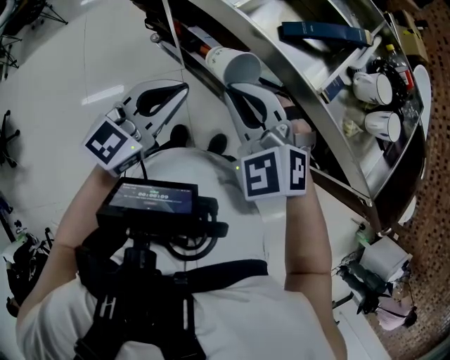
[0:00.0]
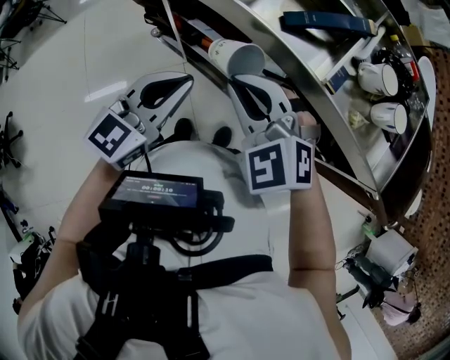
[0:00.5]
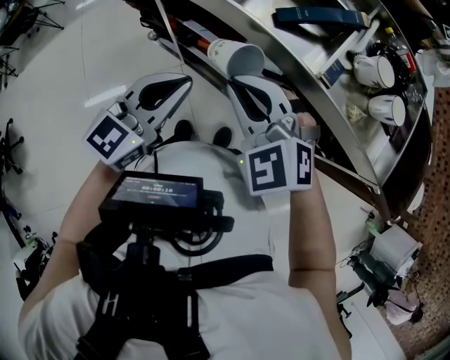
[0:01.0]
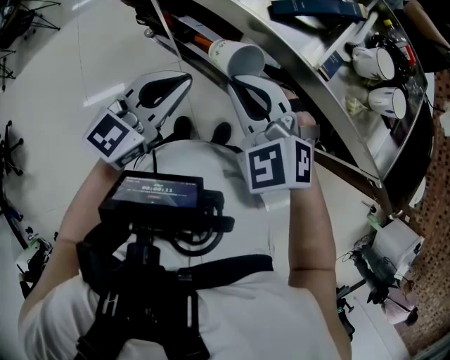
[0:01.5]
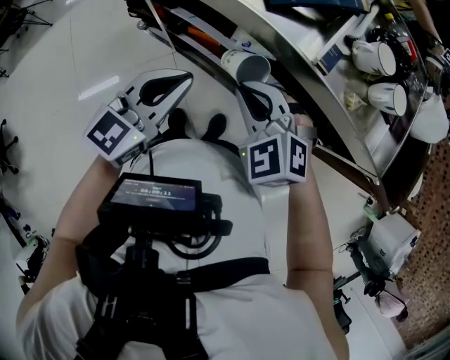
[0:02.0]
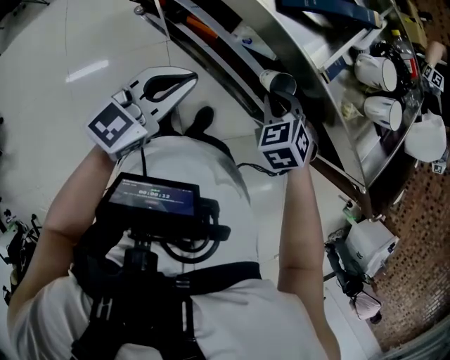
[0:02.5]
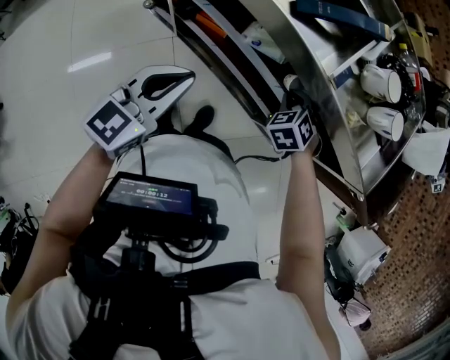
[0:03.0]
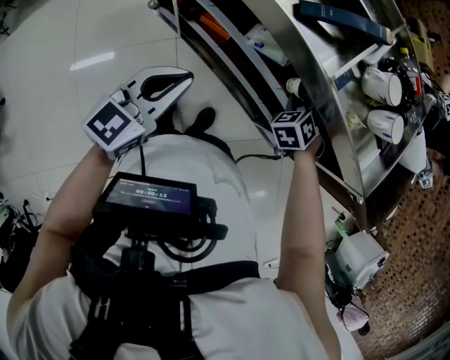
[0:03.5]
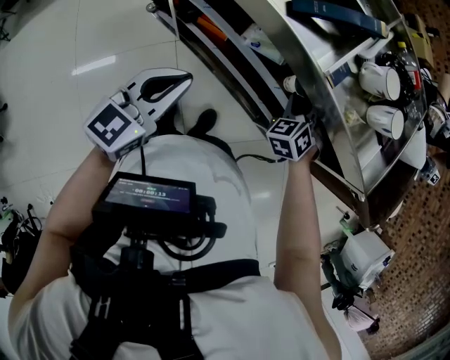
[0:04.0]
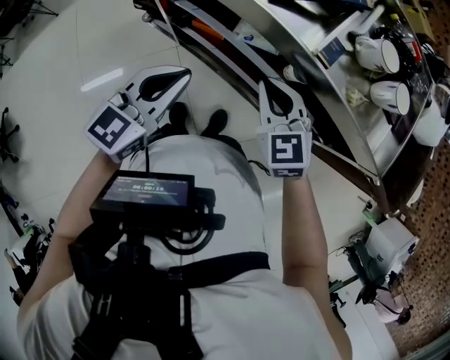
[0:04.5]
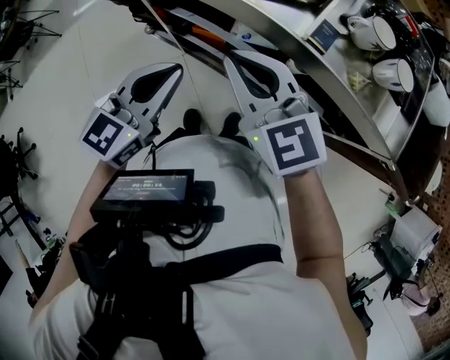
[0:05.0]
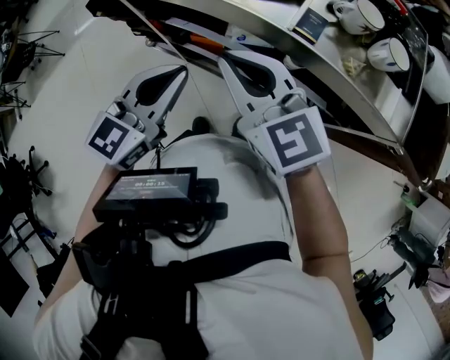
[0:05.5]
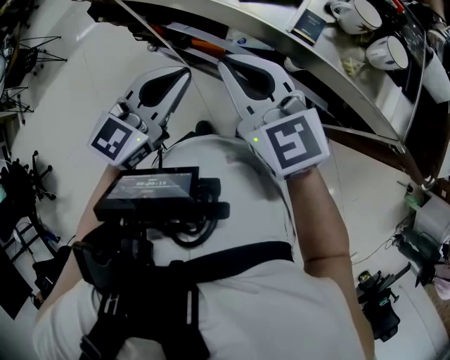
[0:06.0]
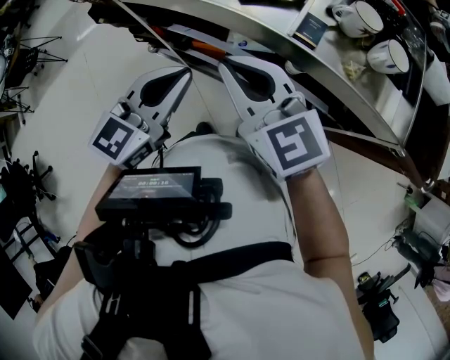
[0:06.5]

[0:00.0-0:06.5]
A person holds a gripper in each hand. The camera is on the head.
0.0 to 2.0 s: The right gripper shifts approximately 10 cm downward and to the right.
2.0 to 4.5 s: The right gripper goes to the right and returns, some 15 cm each way, and changes its angle by some 30 degrees.
4.5 to 6.5 s: The right gripper travels upward and to the left by roughly 15 cm, and rotates roughly 20 degrees. Meanwhile the left gripper shifts about 5 cm upward.

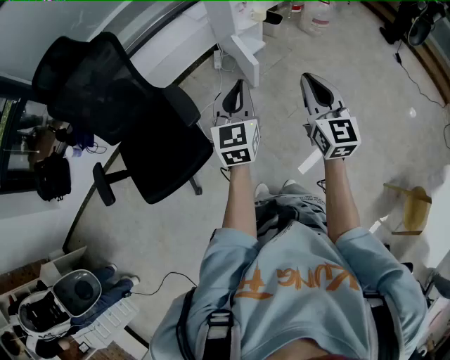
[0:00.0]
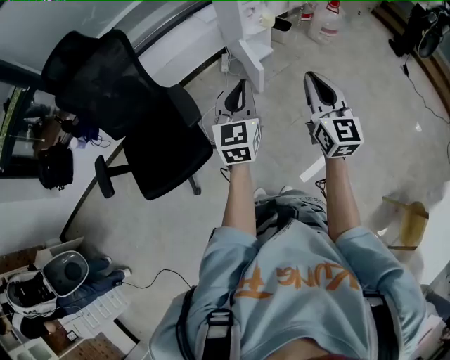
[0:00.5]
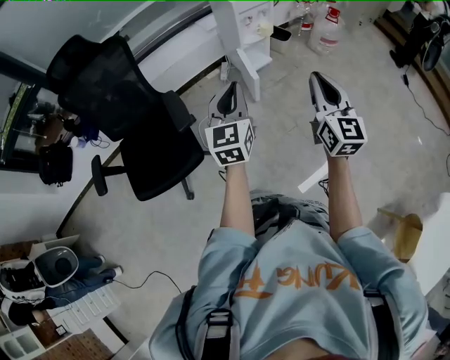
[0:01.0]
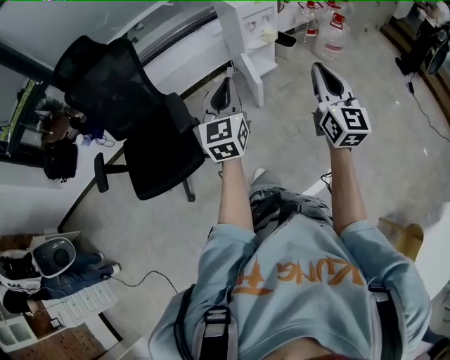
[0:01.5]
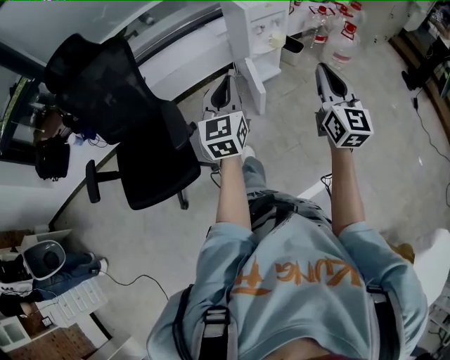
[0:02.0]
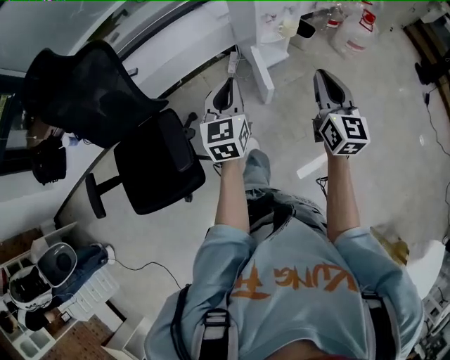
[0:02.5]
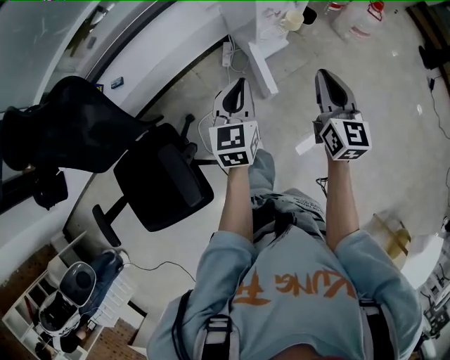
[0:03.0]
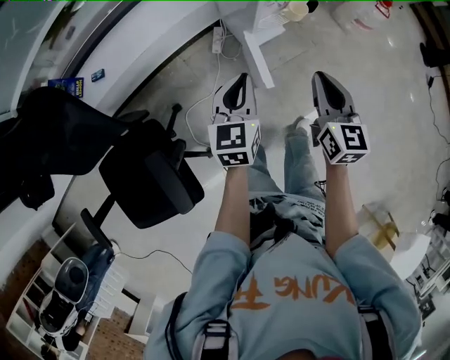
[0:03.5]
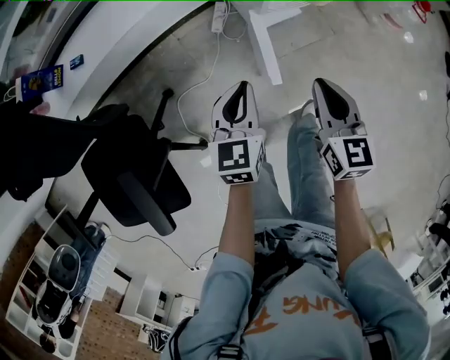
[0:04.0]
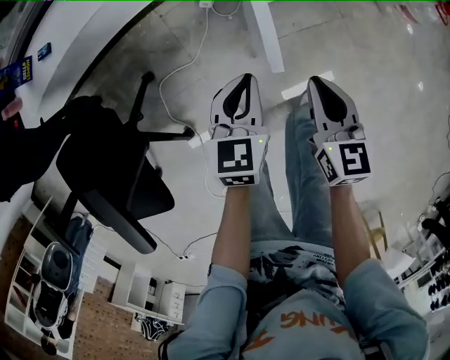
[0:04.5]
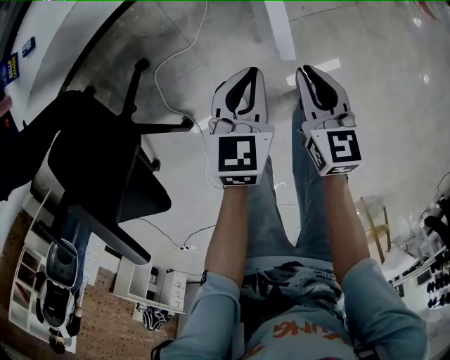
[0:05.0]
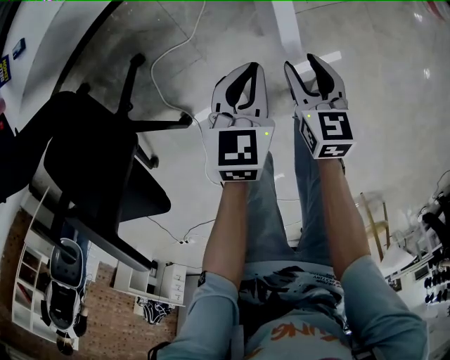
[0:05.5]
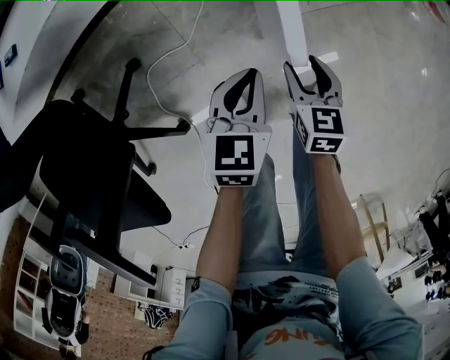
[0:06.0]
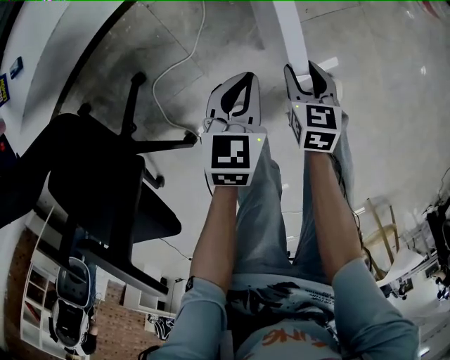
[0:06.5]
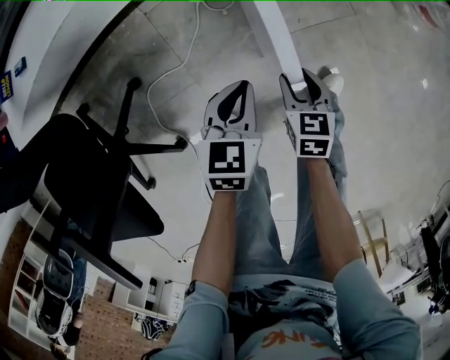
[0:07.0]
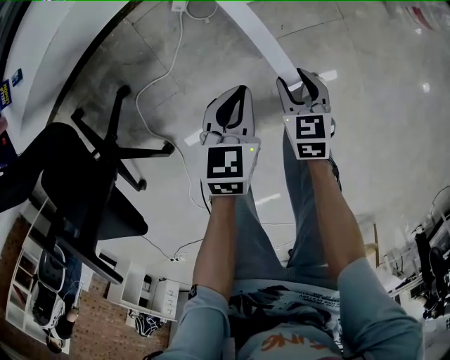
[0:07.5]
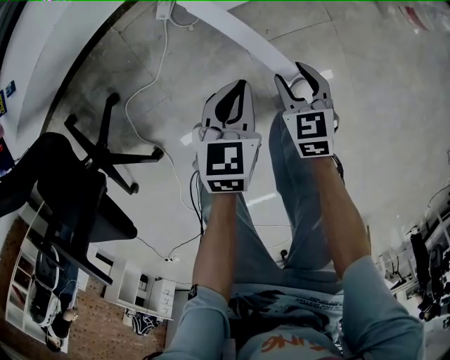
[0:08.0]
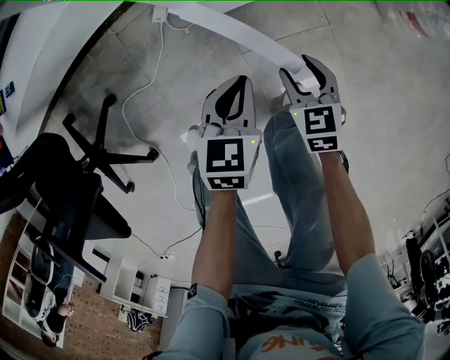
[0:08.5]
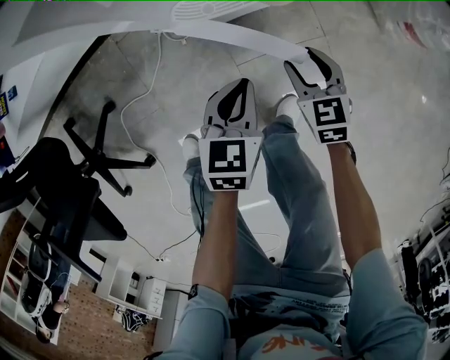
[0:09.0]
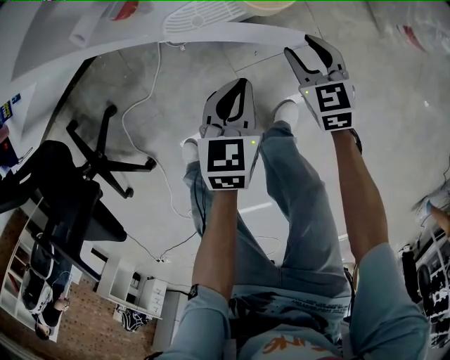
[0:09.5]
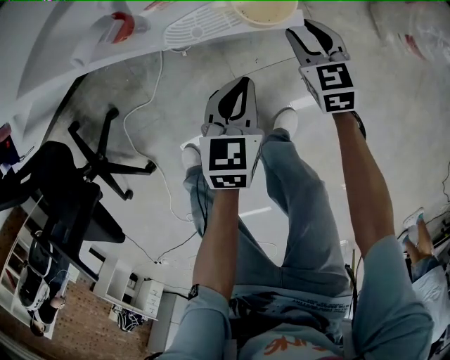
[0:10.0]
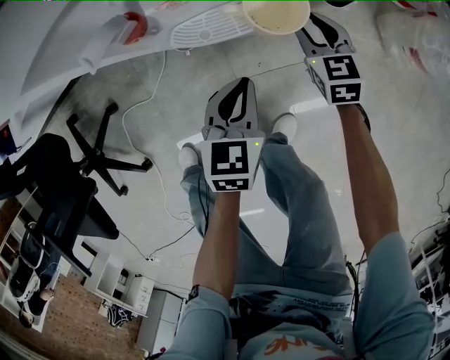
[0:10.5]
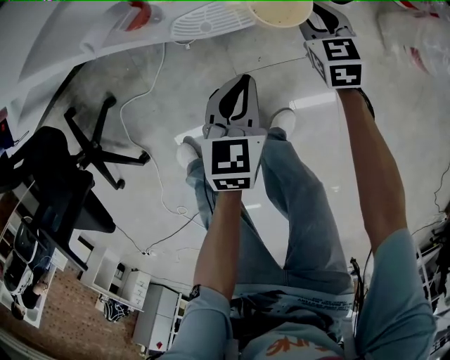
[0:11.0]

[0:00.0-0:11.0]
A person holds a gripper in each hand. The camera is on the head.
0.0 to 2.0 s: The right gripper is displaced forward and to the right by about 20 cm. The left gripper shifts approximately 10 cm forward.
2.0 to 3.5 s: The grippers both shift forward and downward by about 40 cm. The right gripper swivels some 30 degrees. The left gripper changes its angle by approximately 20 degrees.
3.5 to 5.5 s: The two grippers go about 40 cm downward. The right gripper turns by some 30 degrees, and opens its fingers.
5.5 to 7.5 s: The left gripper is displaced to the right and forward by some 10 cm, while the right gripper moves to the right, downward and forward, approximately 15 cm.
7.5 to 9.0 s: The right gripper moves forward and to the right, approximately 20 cm. The left gripper moves to the right and forward, approximately 15 cm.
9.0 to 11.0 s: The left gripper shifts by roughly 5 cm. The right gripper goes roughly 15 cm forward.

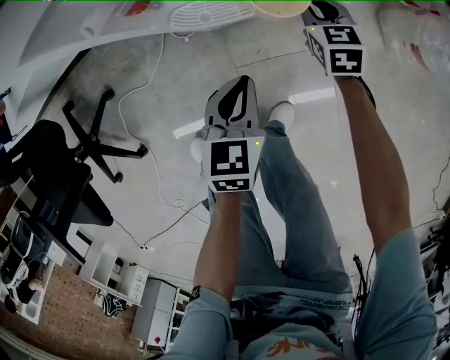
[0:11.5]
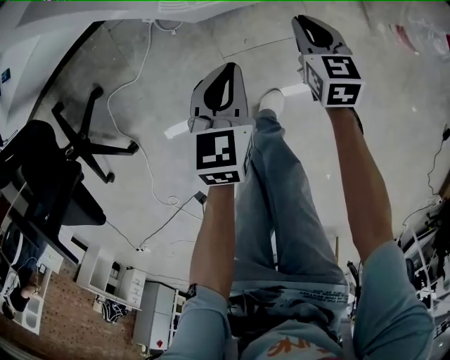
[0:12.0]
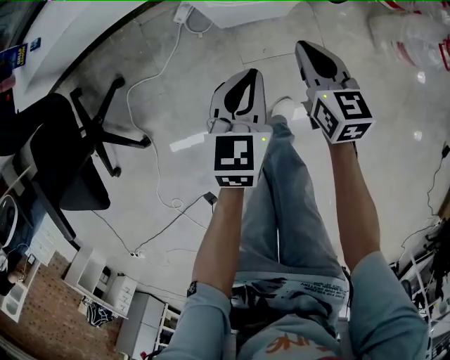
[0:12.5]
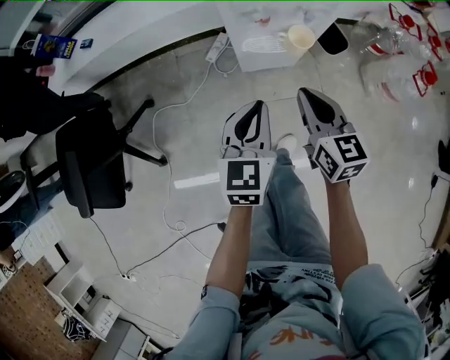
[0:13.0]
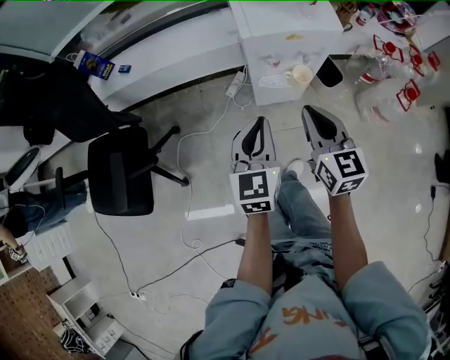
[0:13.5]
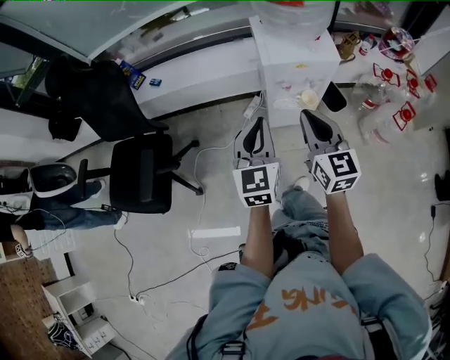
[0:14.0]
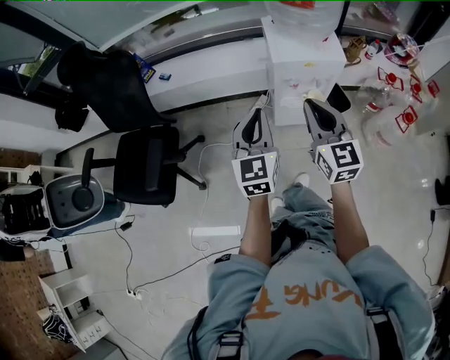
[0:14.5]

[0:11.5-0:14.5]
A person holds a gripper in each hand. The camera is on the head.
11.5 to 13.0 s: The left gripper moves upward, about 25 cm; the right gripper heads upward, backward and to the left, covering roughly 40 cm, and changes its angle by about 20 degrees.
13.0 to 14.5 s: Both grippers travel together upward, roughly 30 cm. The right gripper changes its angle by some 20 degrees; the left gripper rotates about 20 degrees.

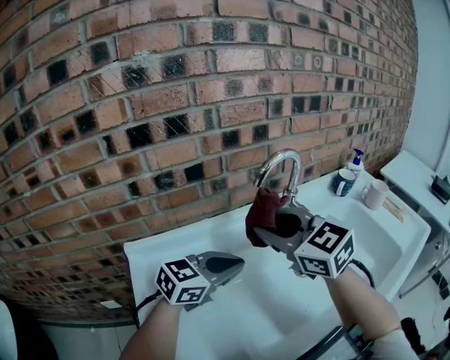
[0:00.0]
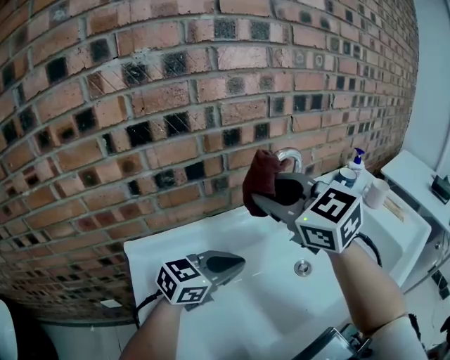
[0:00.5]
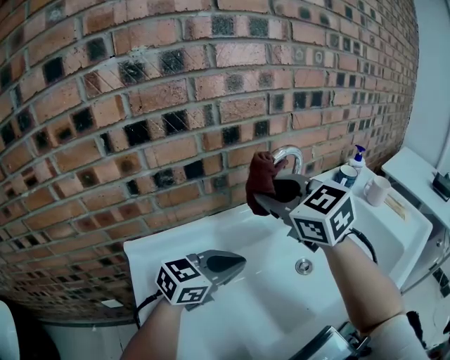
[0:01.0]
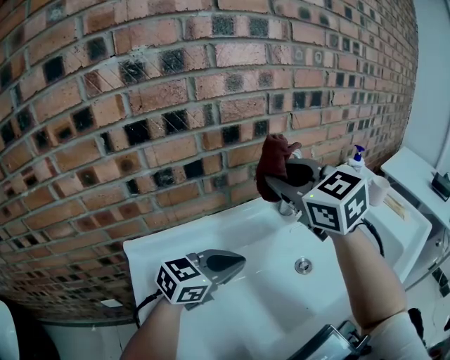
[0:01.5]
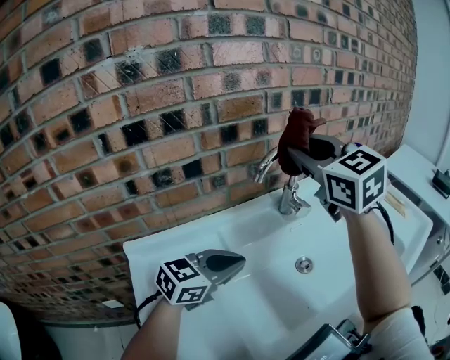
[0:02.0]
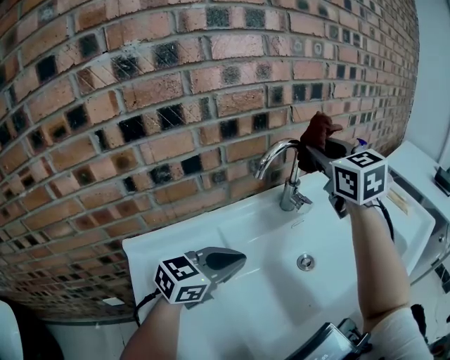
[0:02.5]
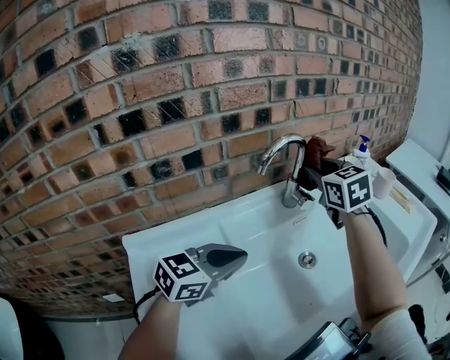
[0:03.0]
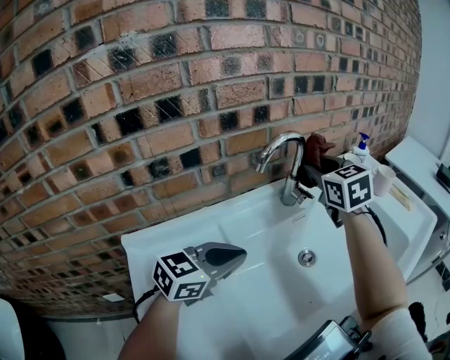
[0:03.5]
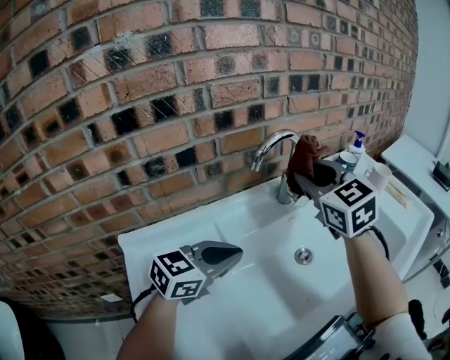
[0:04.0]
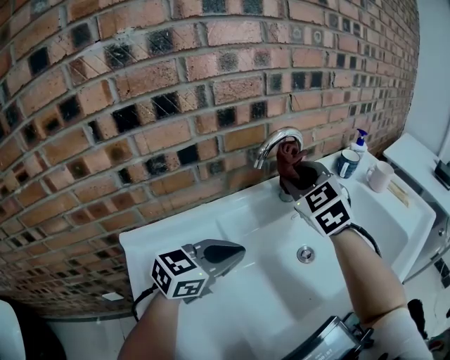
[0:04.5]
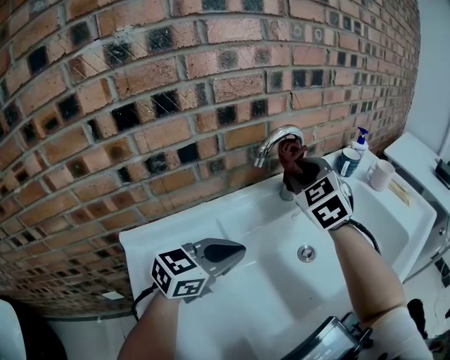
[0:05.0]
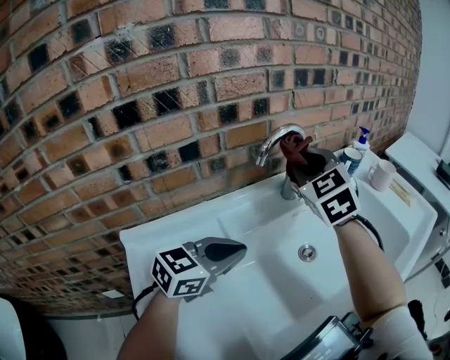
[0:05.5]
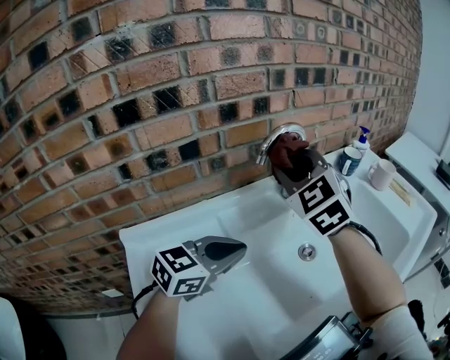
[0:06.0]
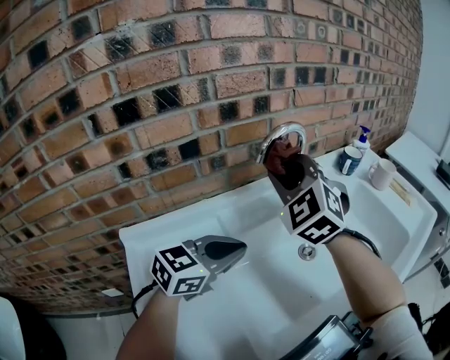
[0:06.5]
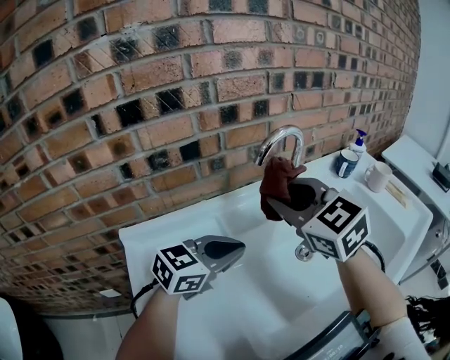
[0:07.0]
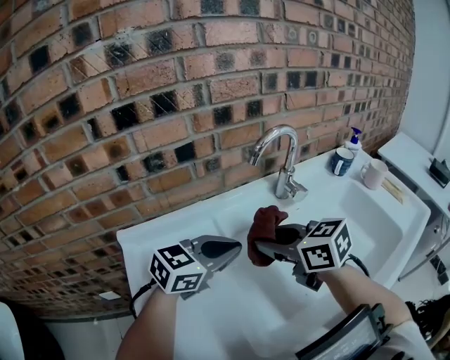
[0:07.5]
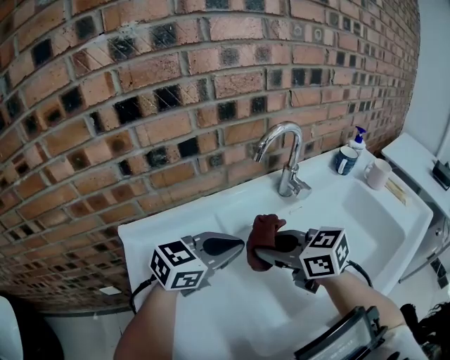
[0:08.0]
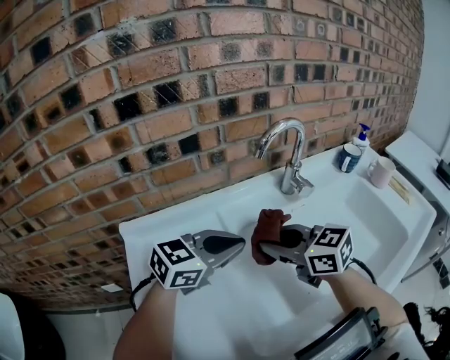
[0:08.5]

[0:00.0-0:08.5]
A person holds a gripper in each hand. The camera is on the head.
0.0 to 2.0 s: The right gripper shifts about 15 cm upward, forward and to the right, and swivels approximately 20 degrees.
2.0 to 4.0 s: The right gripper travels downward by approximately 10 cm.
4.0 to 6.5 s: The right gripper goes approximately 5 cm to the left, and turns by approximately 30 degrees.
6.5 to 8.5 s: The right gripper is displaced downward and backward by approximately 15 cm, and swivels approximately 60 degrees.
